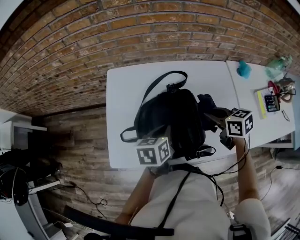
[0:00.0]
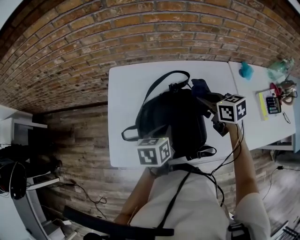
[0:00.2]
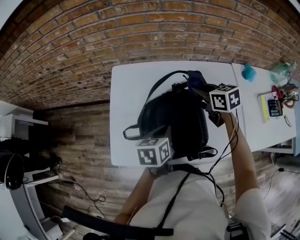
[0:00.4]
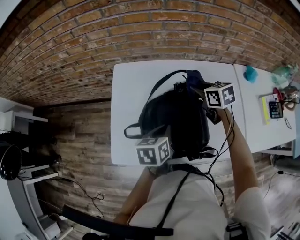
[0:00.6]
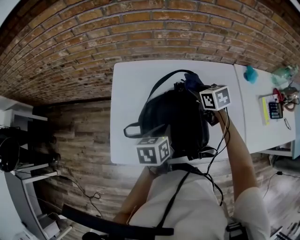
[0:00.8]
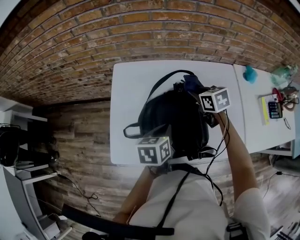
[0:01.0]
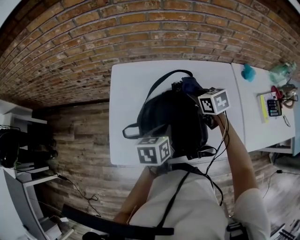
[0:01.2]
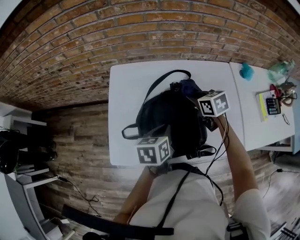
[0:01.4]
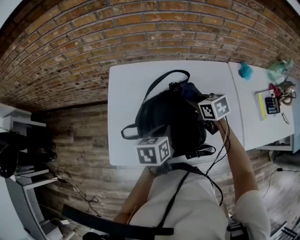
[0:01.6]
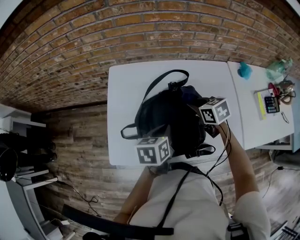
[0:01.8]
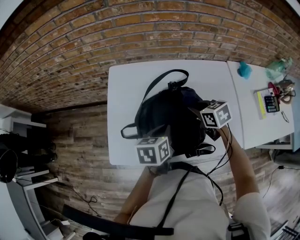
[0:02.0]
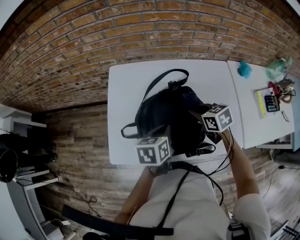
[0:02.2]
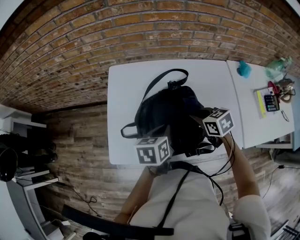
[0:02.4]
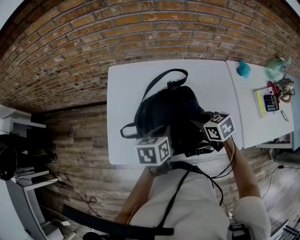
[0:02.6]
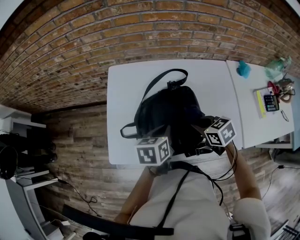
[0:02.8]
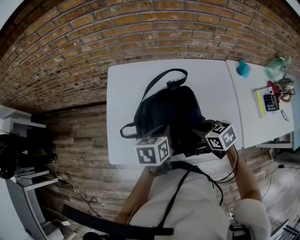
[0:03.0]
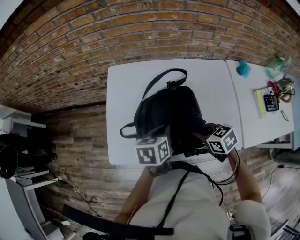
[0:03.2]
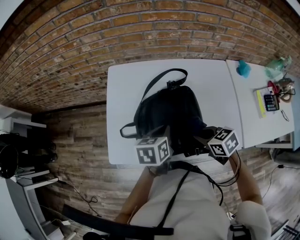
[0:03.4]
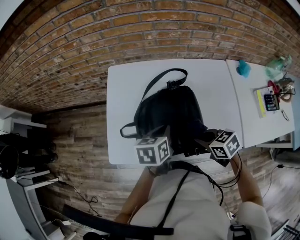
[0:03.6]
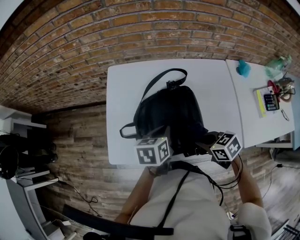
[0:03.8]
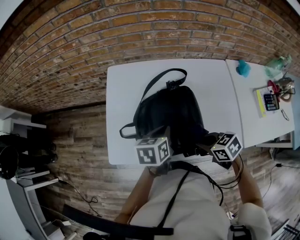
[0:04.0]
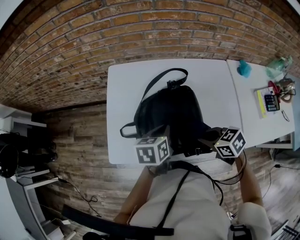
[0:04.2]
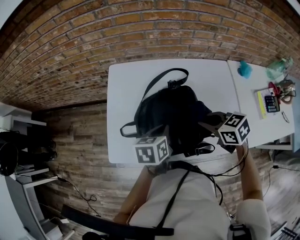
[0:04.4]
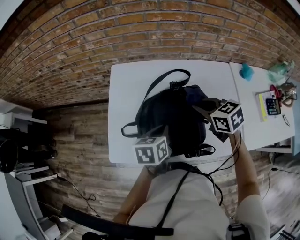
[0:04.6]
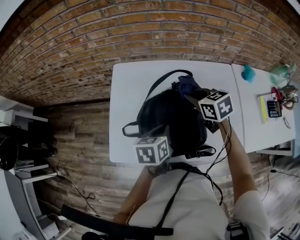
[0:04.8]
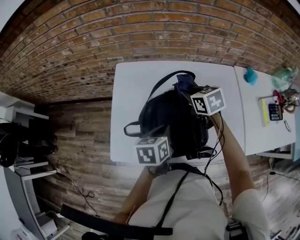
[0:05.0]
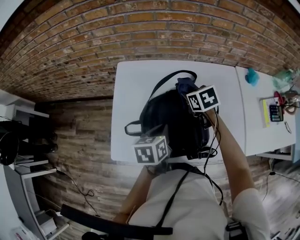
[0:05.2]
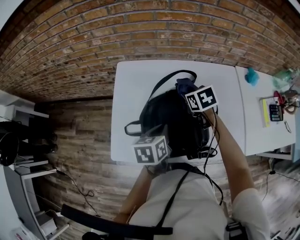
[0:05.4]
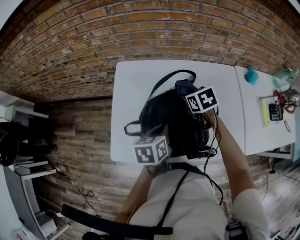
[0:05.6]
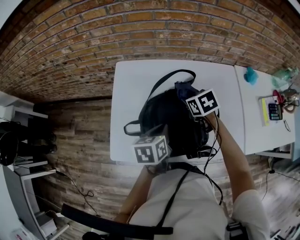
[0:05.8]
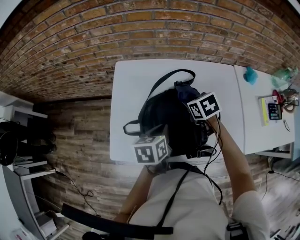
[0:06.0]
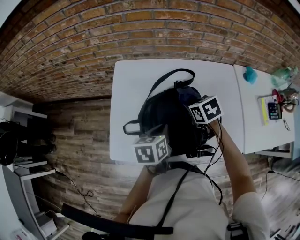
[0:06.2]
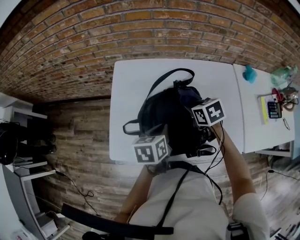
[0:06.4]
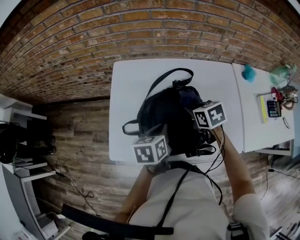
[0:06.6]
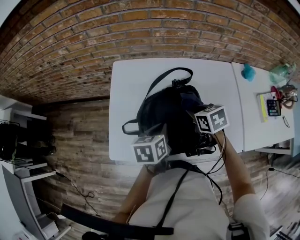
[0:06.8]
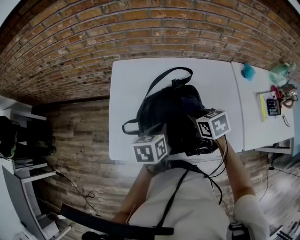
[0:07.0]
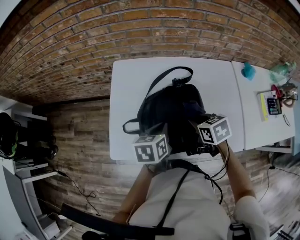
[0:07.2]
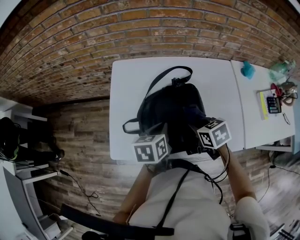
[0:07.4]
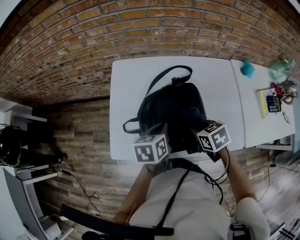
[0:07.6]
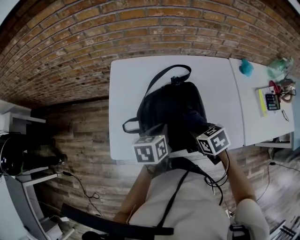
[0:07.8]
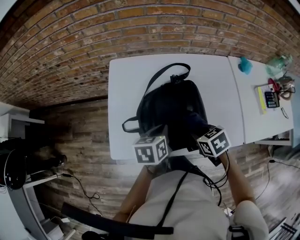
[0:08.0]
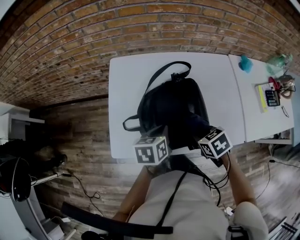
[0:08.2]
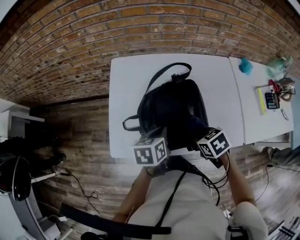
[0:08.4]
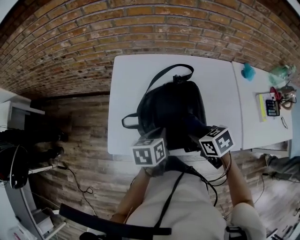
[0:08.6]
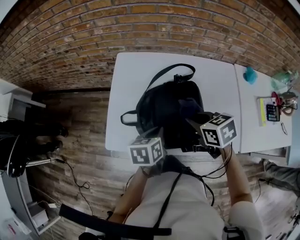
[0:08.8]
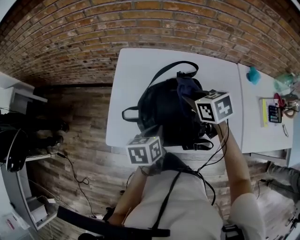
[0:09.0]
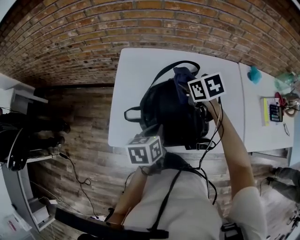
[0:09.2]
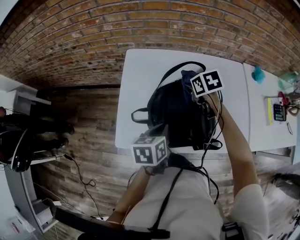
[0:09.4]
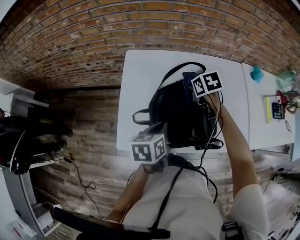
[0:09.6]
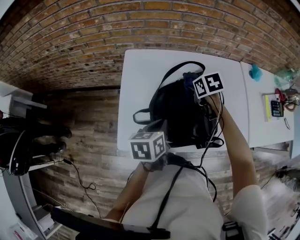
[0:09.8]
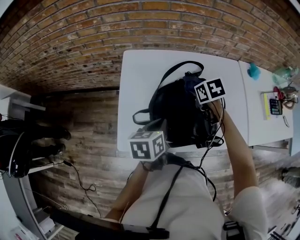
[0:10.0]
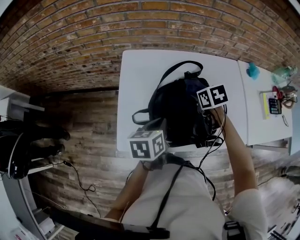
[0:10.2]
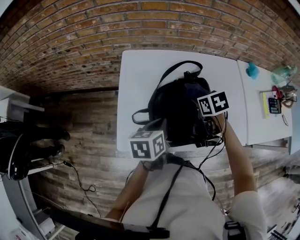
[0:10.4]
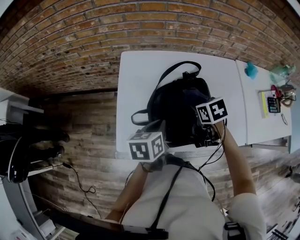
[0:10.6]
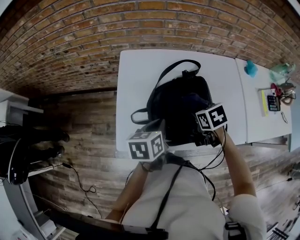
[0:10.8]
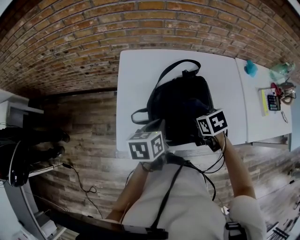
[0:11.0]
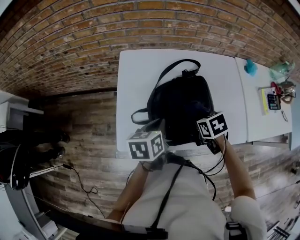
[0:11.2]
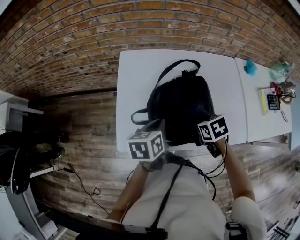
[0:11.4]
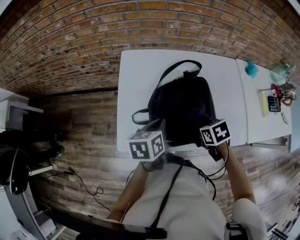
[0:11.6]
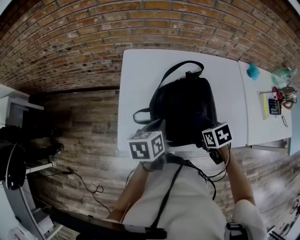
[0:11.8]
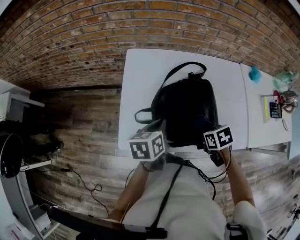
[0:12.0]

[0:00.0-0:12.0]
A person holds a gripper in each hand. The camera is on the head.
0:00.0 to 0:01.6: The right gripper goes approximately 10 cm forward and to the left.
0:01.6 to 0:03.0: The right gripper is displaced backward by some 15 cm.
0:03.0 to 0:04.4: The right gripper heads upward, covering approximately 5 cm, and travels backward and back again, approximately 5 cm each way.
0:04.4 to 0:06.0: The right gripper shifts roughly 15 cm forward and downward.
0:06.0 to 0:07.6: The right gripper shifts about 15 cm backward.
0:07.6 to 0:09.0: The right gripper moves forward and upward, some 10 cm.
0:09.0 to 0:10.4: The left gripper ends up approximately 5 cm from where it was, while the right gripper is displaced downward by roughly 5 cm.
0:10.4 to 0:12.0: The right gripper shifts approximately 15 cm backward.

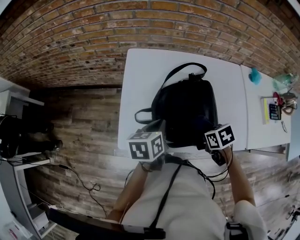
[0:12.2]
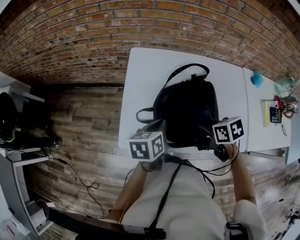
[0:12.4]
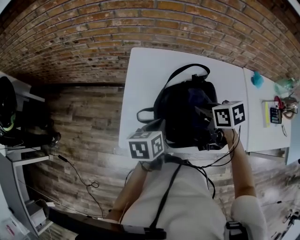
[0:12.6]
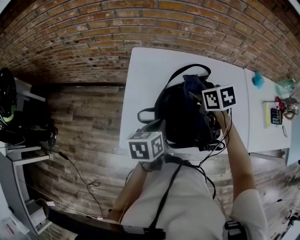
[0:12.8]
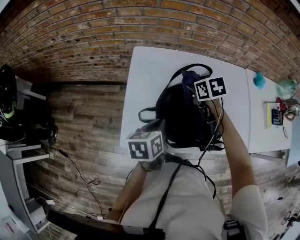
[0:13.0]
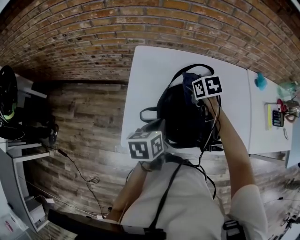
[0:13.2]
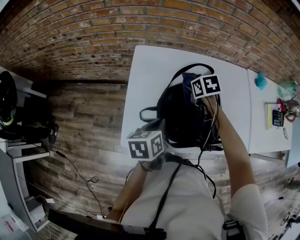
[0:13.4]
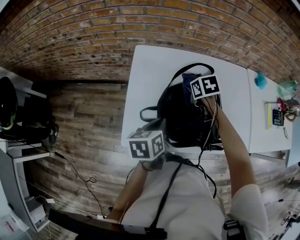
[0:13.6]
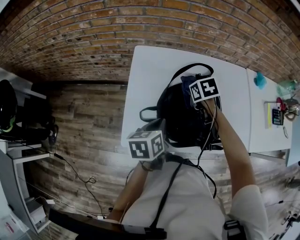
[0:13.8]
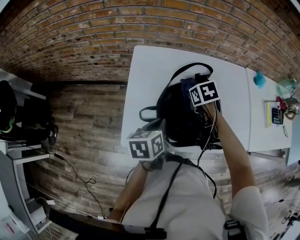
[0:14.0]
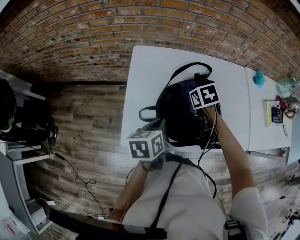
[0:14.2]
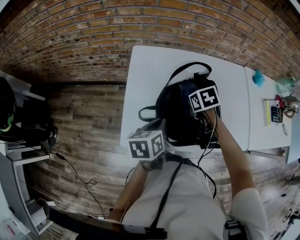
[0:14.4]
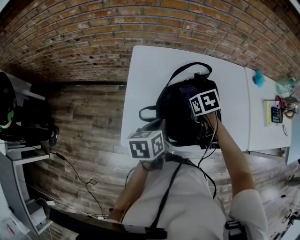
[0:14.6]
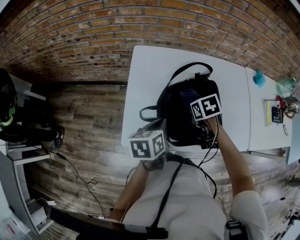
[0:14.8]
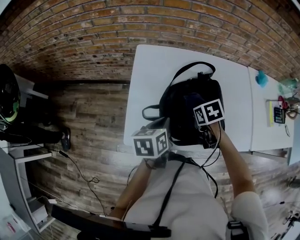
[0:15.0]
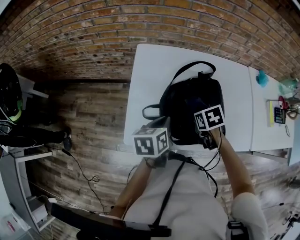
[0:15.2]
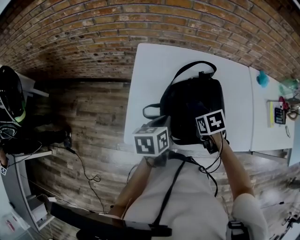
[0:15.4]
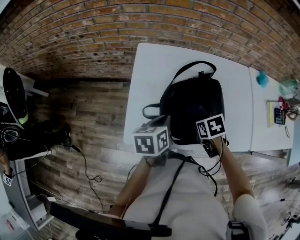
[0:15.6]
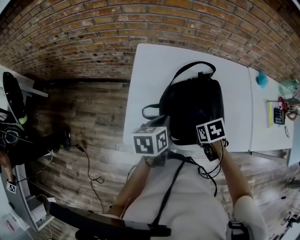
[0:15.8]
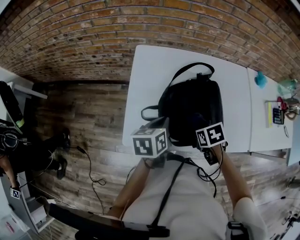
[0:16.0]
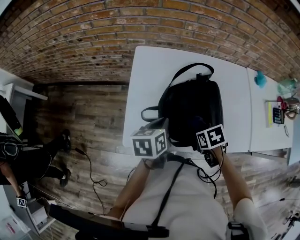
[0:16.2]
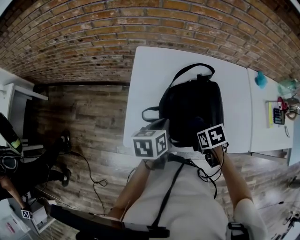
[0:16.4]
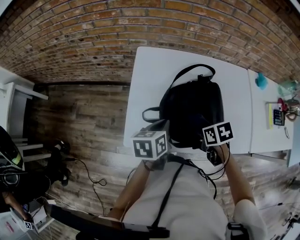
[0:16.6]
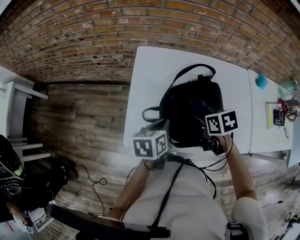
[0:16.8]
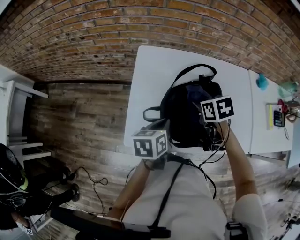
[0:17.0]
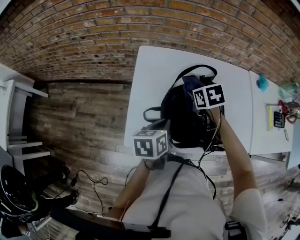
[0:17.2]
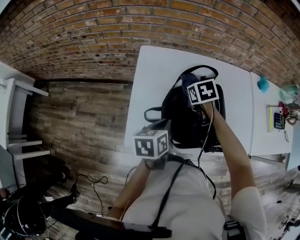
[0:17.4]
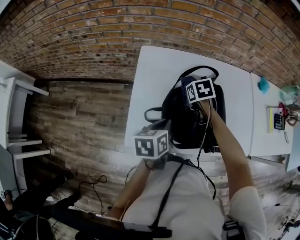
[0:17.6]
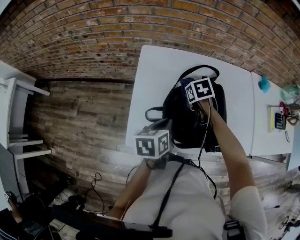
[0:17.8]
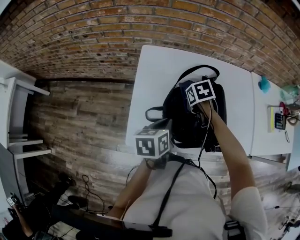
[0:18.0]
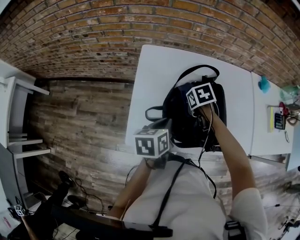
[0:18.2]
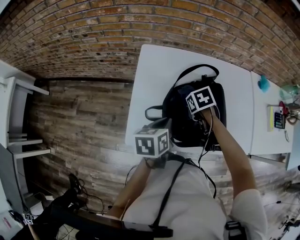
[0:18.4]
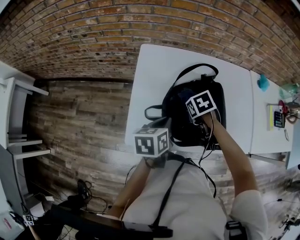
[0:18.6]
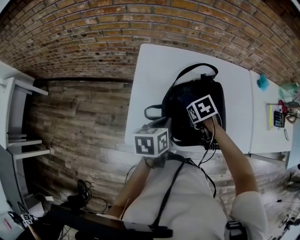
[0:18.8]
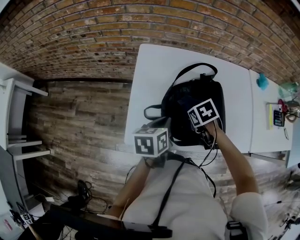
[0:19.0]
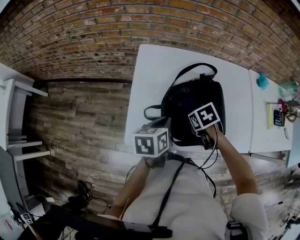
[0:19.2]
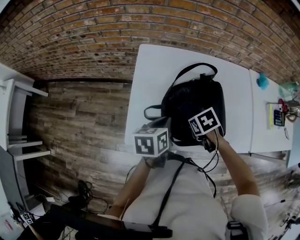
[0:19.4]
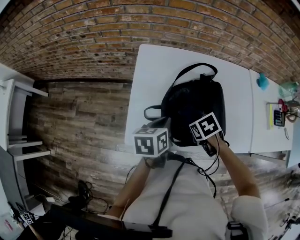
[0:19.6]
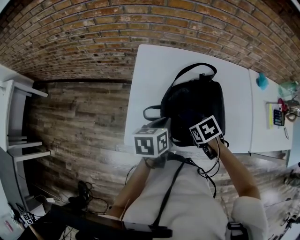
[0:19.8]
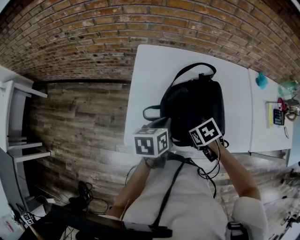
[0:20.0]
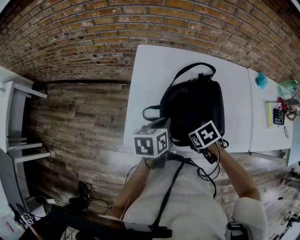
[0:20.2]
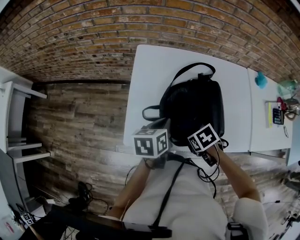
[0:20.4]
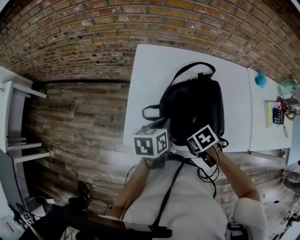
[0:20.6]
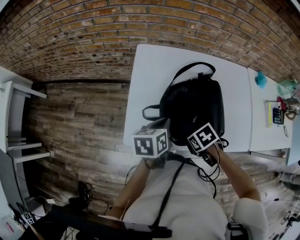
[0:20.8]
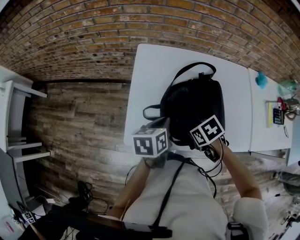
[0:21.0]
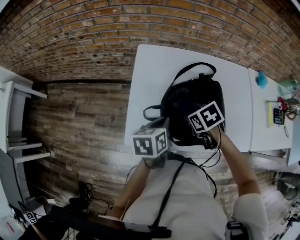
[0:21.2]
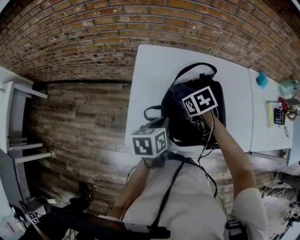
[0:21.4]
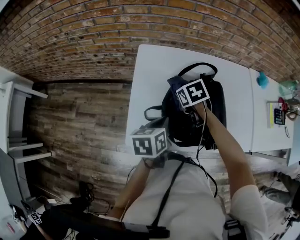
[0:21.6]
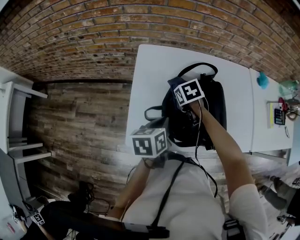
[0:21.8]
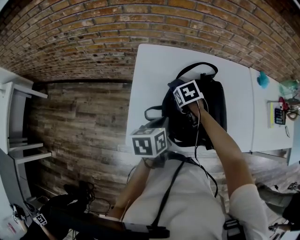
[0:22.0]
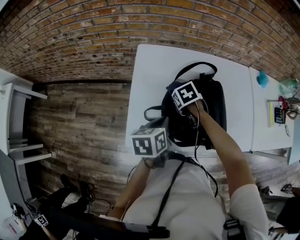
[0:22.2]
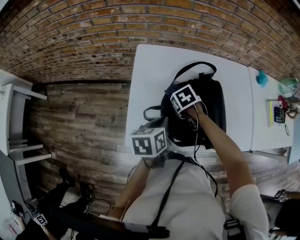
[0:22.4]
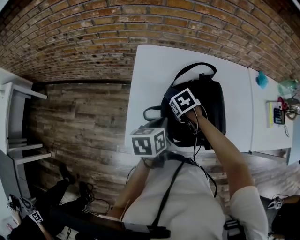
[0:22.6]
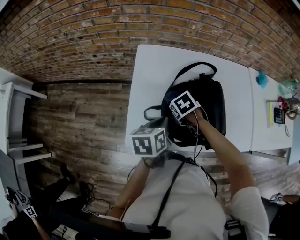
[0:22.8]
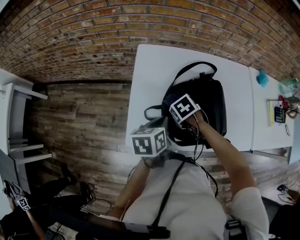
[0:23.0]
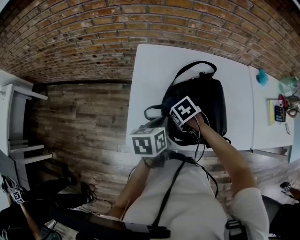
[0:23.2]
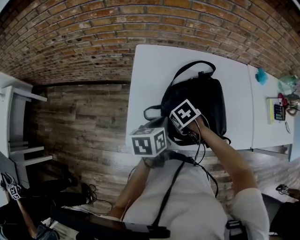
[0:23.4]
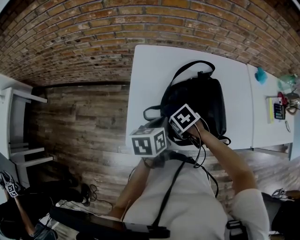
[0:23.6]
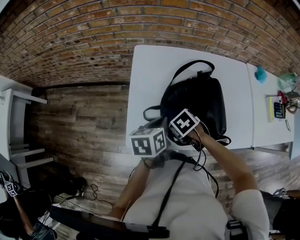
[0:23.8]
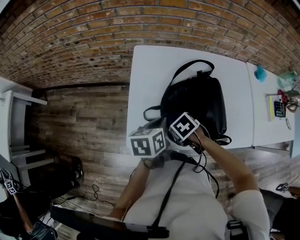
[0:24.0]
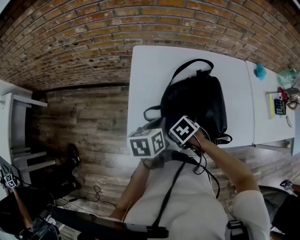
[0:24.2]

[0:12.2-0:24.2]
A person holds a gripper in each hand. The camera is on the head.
0:12.2 to 0:13.8: The right gripper moves forward, some 20 cm.
0:13.8 to 0:15.2: The right gripper heads backward, covering roughly 10 cm.
0:15.2 to 0:16.6: The right gripper travels backward by roughly 5 cm.
0:16.6 to 0:18.2: The right gripper goes some 15 cm forward.
0:18.2 to 0:19.8: The right gripper changes place by about 15 cm.
0:19.8 to 0:21.2: The right gripper changes place by about 5 cm.
0:21.2 to 0:22.6: The right gripper shifts by approximately 10 cm.
0:22.6 to 0:24.2: The right gripper moves approximately 15 cm.
